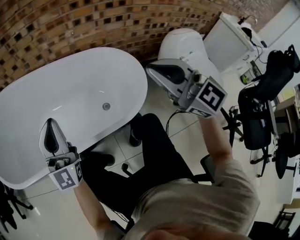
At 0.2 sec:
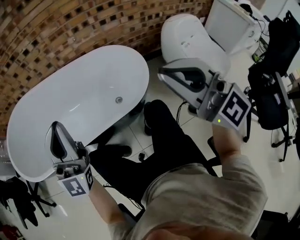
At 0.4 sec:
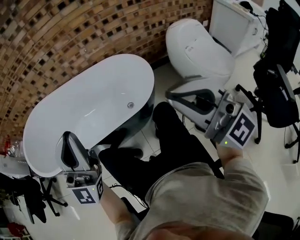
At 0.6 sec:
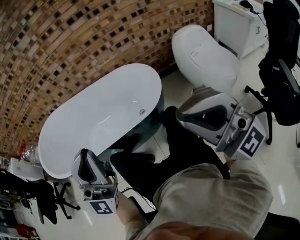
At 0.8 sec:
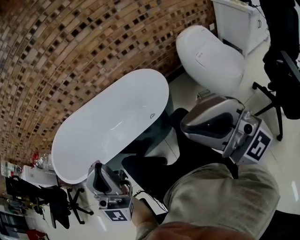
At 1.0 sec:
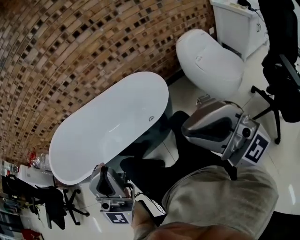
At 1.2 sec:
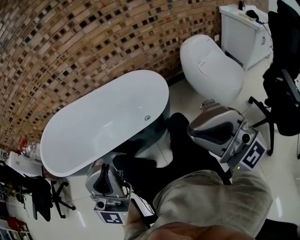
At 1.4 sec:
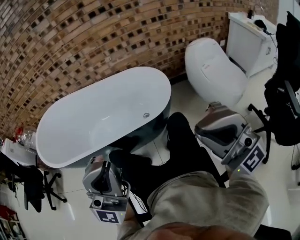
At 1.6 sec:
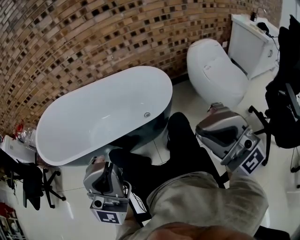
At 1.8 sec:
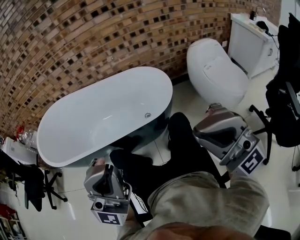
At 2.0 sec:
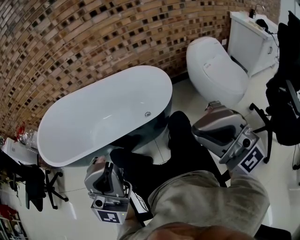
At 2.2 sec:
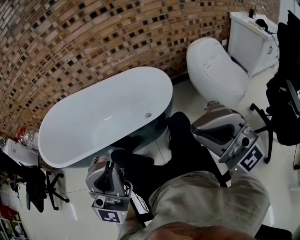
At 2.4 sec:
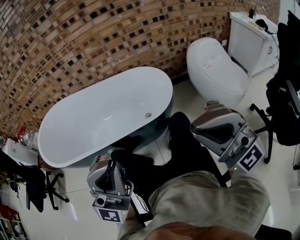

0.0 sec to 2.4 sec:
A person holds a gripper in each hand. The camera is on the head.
0.0 sec to 1.2 sec: The left gripper heads backward and upward, covering roughly 40 cm, and rotates roughly 40 degrees. Meanwhile the right gripper goes approximately 35 cm backward, and rotates about 40 degrees.
1.2 sec to 2.4 sec: There are only small adjustments of the grippers.

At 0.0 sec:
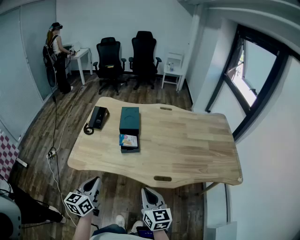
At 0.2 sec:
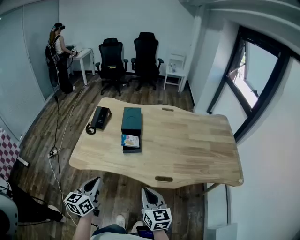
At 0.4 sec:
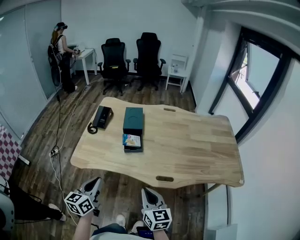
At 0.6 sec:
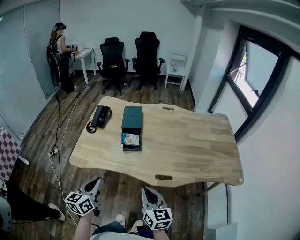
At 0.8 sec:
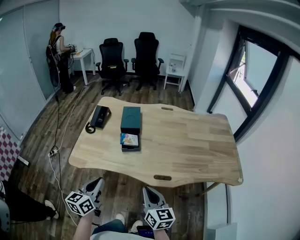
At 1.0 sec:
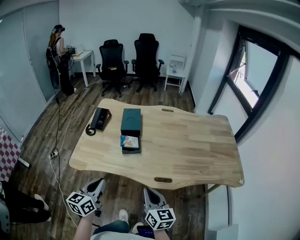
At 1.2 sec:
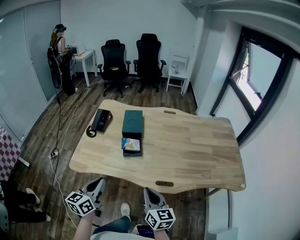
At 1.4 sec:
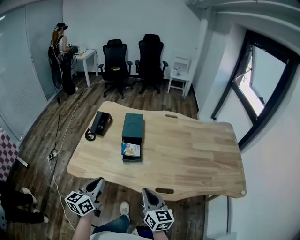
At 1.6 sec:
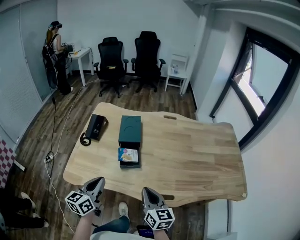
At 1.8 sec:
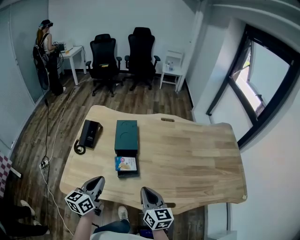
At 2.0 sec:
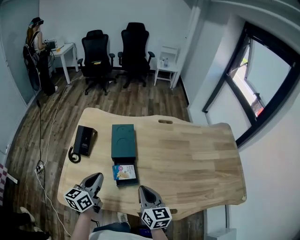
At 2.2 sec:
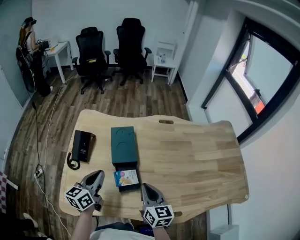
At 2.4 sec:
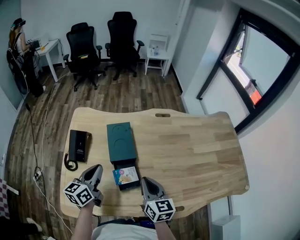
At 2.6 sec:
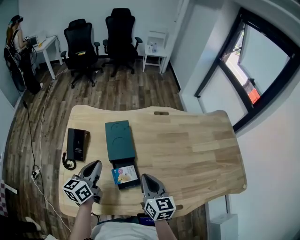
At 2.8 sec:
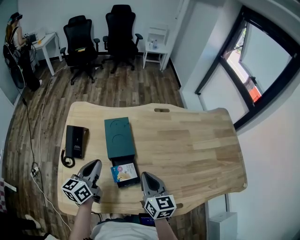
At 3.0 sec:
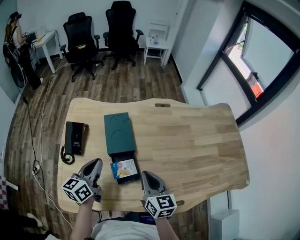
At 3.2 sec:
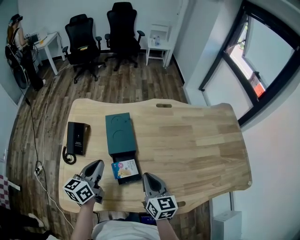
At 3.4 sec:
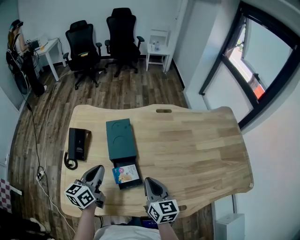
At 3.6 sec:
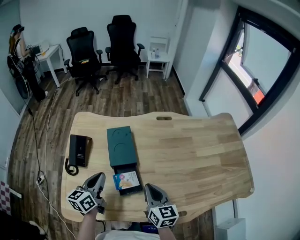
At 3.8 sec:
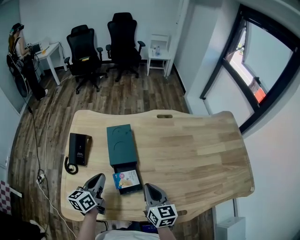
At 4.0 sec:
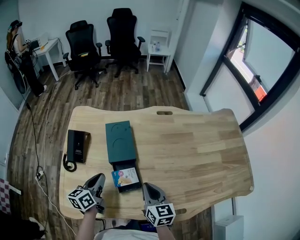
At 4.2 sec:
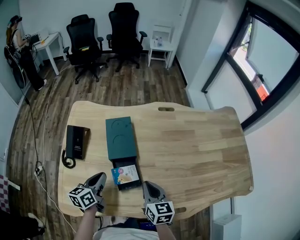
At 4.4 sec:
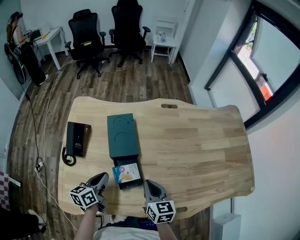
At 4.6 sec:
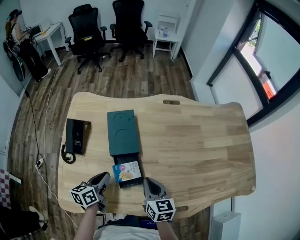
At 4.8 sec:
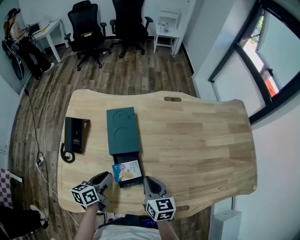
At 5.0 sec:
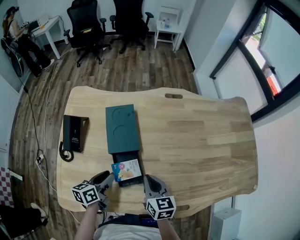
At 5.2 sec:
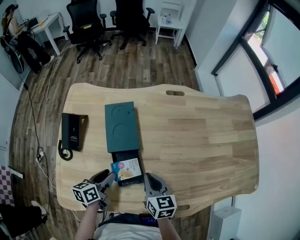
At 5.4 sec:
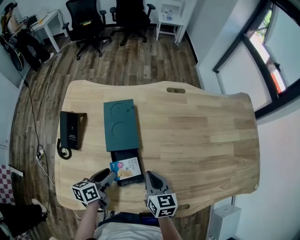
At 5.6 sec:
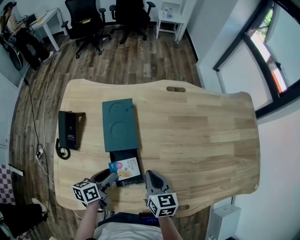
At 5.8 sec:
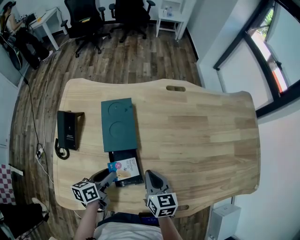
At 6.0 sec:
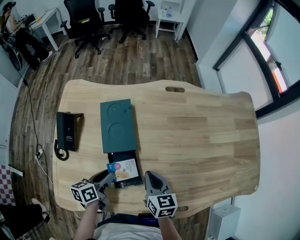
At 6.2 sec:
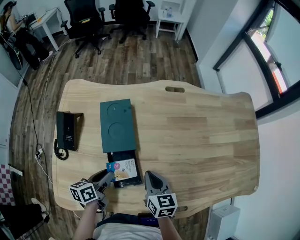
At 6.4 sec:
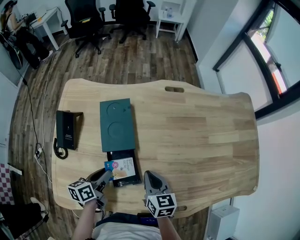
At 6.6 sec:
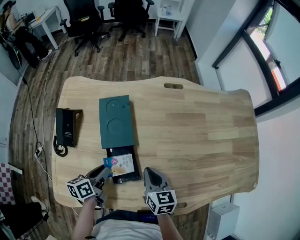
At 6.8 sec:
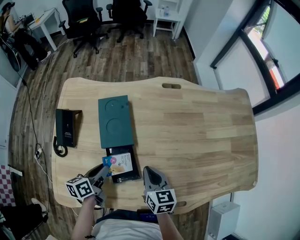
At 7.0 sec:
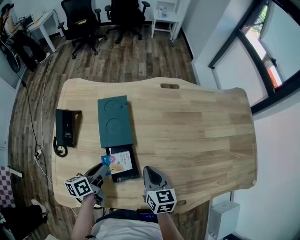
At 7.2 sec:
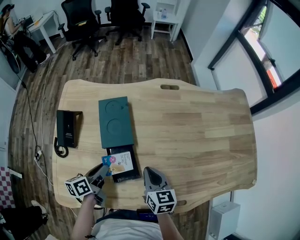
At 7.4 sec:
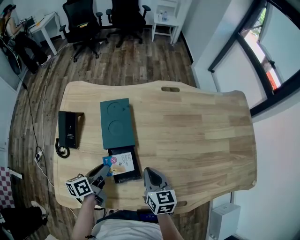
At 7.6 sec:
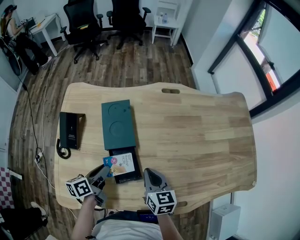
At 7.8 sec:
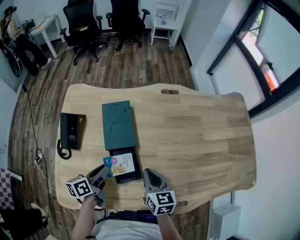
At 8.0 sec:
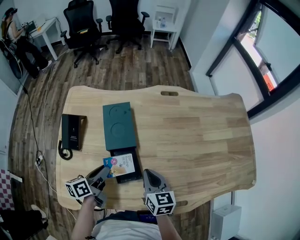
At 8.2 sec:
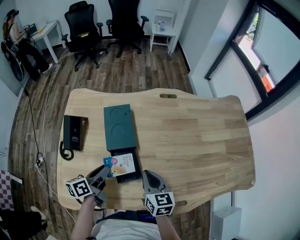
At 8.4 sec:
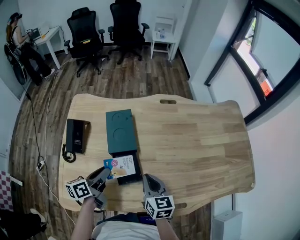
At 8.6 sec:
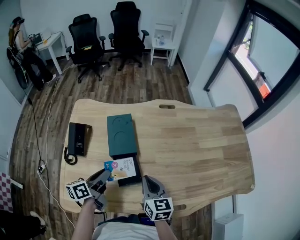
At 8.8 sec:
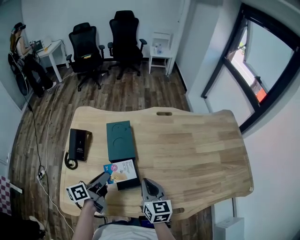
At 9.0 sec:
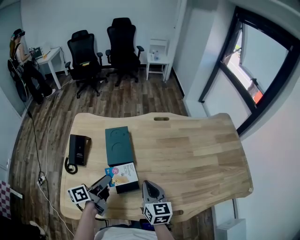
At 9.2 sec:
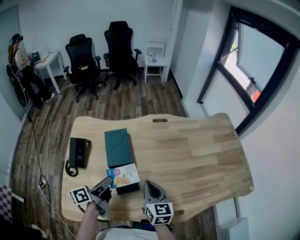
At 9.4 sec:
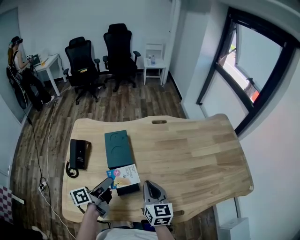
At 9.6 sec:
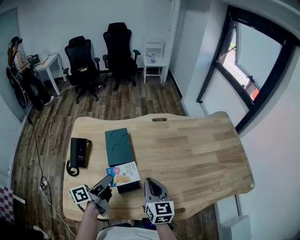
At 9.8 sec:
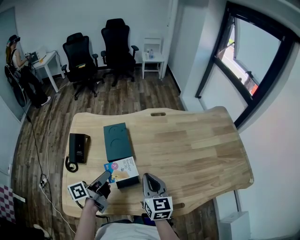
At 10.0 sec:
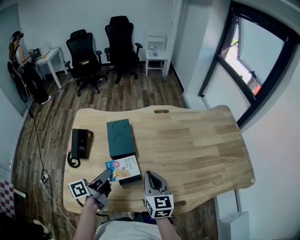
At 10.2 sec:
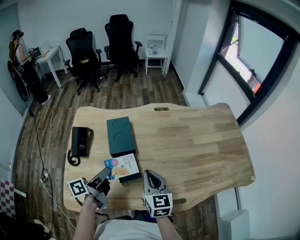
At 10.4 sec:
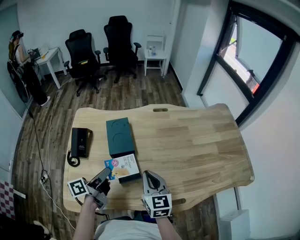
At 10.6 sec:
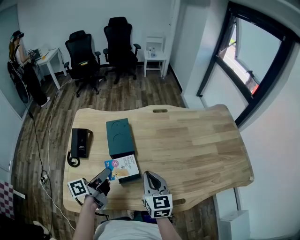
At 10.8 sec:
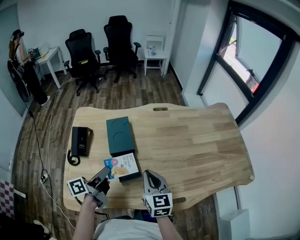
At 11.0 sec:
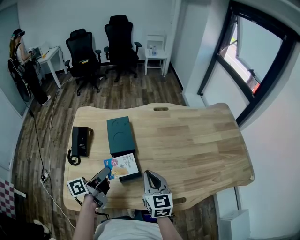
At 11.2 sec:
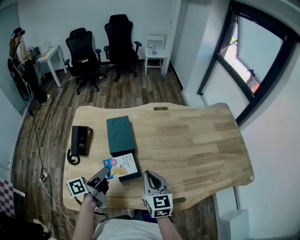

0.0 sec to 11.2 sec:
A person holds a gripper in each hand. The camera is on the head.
0.0 sec to 1.6 sec: Both grippers travel together forward, about 15 cm.
1.6 sec to 3.2 sec: Both grippers travel together forward, about 20 cm.
3.2 sec to 4.8 sec: The right gripper goes approximately 10 cm downward; the left gripper is displaced downward by approximately 15 cm, and changes its angle by roughly 20 degrees.
4.8 sec to 6.4 sec: The right gripper ends up approximately 5 cm from where it was.
6.4 sec to 8.0 sec: The left gripper is displaced upward by roughly 5 cm.
8.0 sec to 9.6 sec: Both grippers travel together upward, about 10 cm.
9.6 sec to 11.2 sec: The grippers move only a little.

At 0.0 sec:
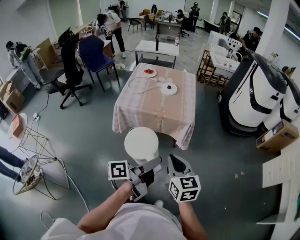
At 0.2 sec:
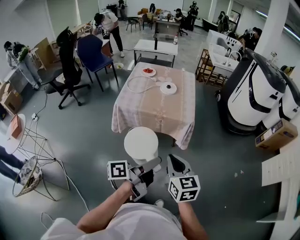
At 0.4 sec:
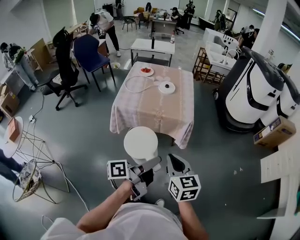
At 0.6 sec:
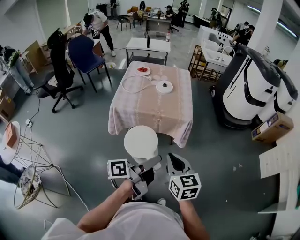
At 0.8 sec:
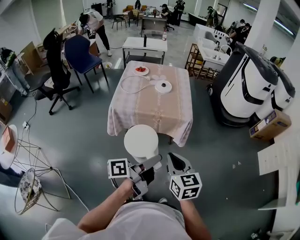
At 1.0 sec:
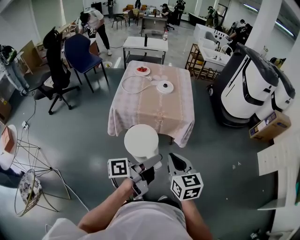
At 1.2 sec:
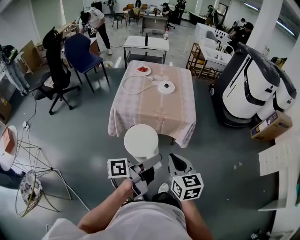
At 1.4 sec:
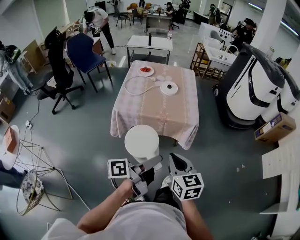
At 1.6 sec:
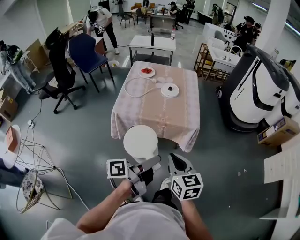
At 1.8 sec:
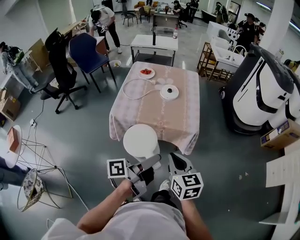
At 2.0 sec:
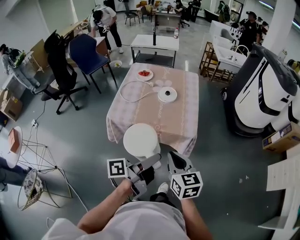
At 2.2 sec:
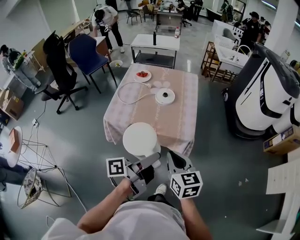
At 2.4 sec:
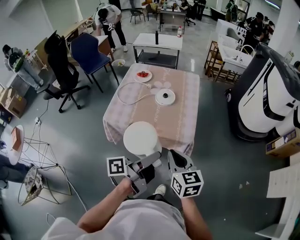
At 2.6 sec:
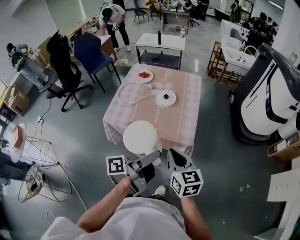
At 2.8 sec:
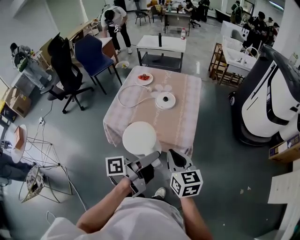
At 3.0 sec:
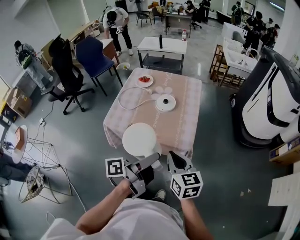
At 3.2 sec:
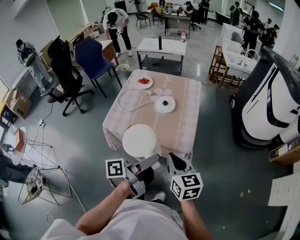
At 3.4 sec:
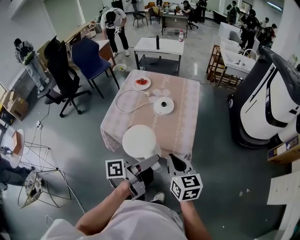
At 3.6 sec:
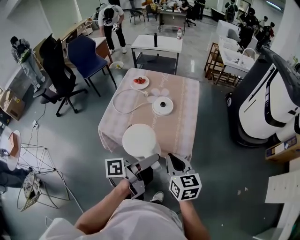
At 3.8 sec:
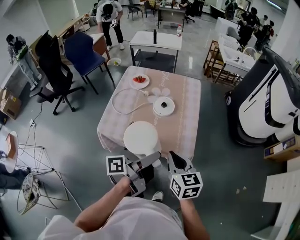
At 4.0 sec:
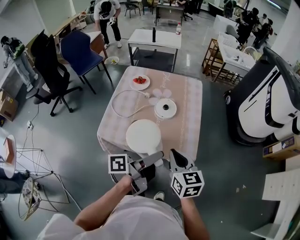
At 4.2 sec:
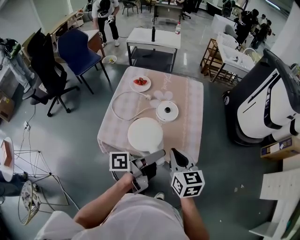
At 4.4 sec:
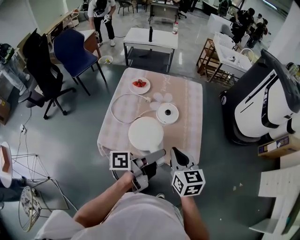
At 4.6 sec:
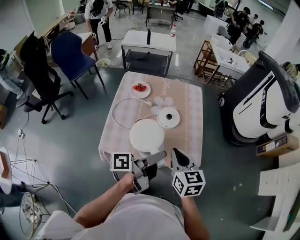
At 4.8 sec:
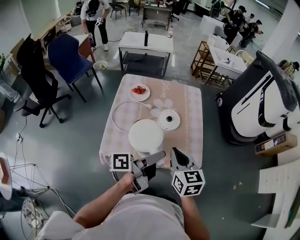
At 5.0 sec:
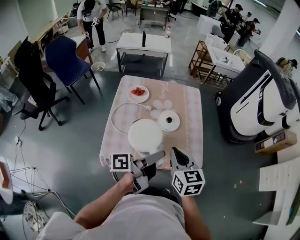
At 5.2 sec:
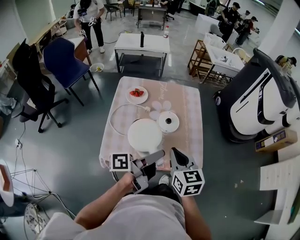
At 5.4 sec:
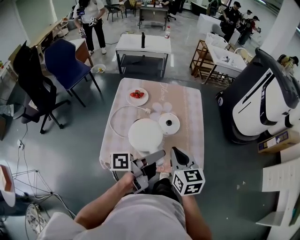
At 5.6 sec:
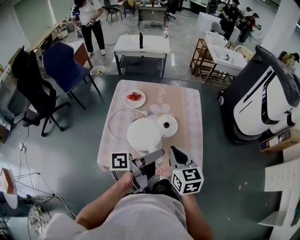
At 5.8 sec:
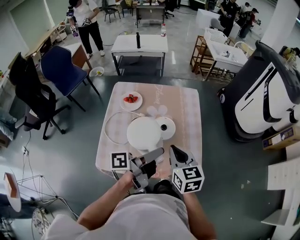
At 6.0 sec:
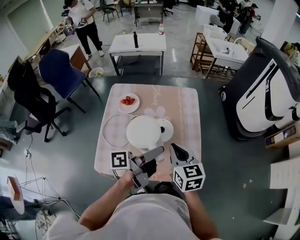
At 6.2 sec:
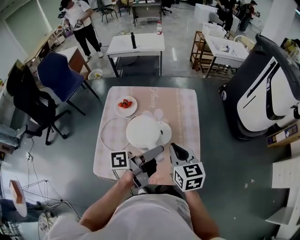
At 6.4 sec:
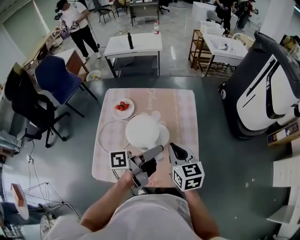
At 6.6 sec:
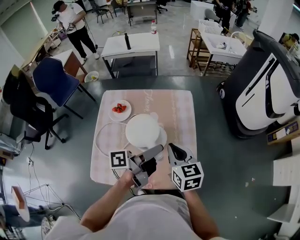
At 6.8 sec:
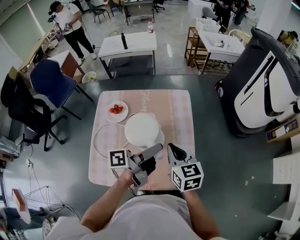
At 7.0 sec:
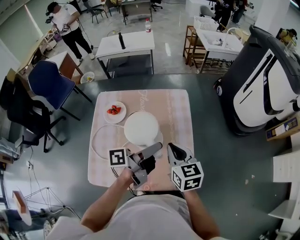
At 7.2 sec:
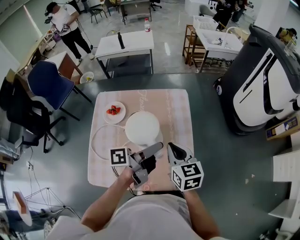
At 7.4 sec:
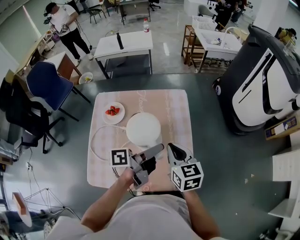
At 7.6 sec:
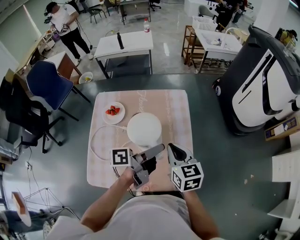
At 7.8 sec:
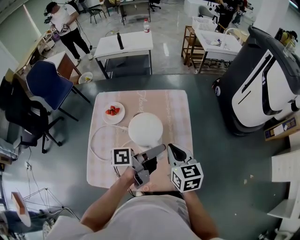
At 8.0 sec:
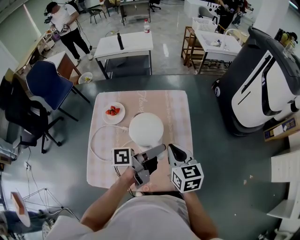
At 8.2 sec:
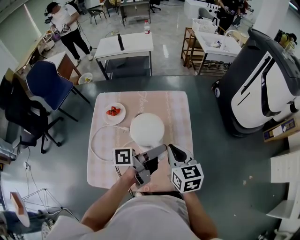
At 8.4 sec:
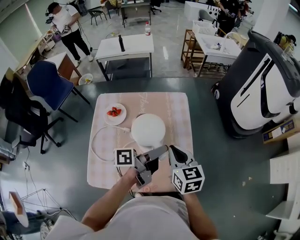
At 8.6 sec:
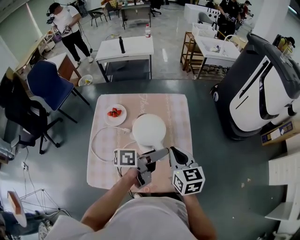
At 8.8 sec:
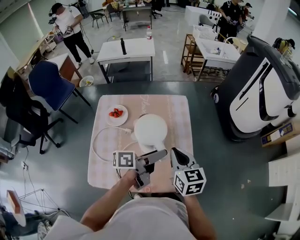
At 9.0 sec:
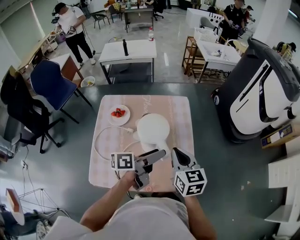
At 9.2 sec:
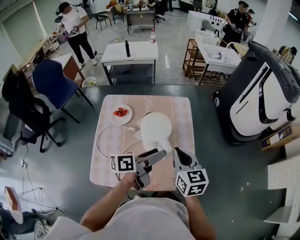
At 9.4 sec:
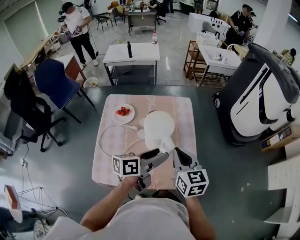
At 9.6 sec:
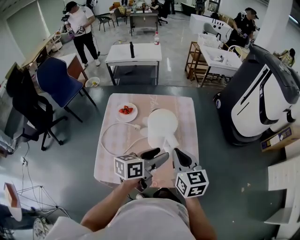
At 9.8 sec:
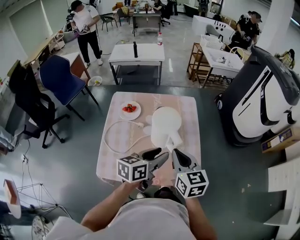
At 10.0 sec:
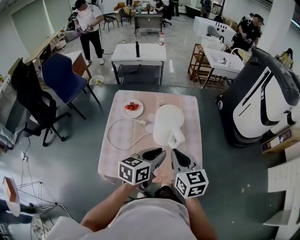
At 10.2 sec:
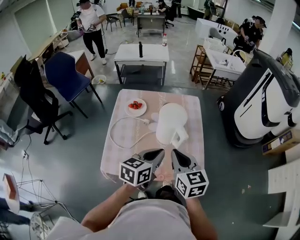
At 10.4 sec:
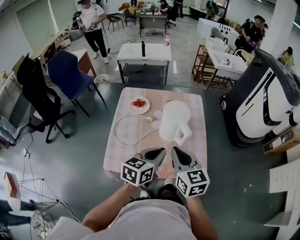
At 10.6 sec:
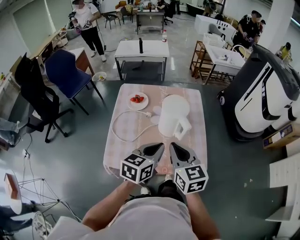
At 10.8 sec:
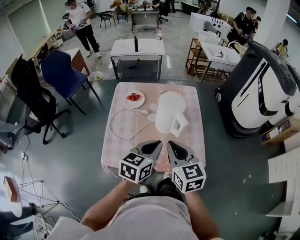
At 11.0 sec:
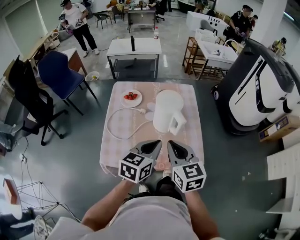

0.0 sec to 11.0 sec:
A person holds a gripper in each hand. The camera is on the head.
0.0 sec to 1.6 sec: The right gripper changes place by approximately 10 cm.
1.6 sec to 3.2 sec: The right gripper moves about 20 cm.
3.2 sec to 4.8 sec: The right gripper moves roughly 20 cm.
4.8 sec to 6.2 sec: The right gripper changes place by roughly 15 cm.
6.2 sec to 7.8 sec: The right gripper shifts by roughly 5 cm.
7.8 sec to 9.4 sec: The right gripper moves about 5 cm.
9.4 sec to 11.0 sec: The right gripper changes place by about 15 cm.
